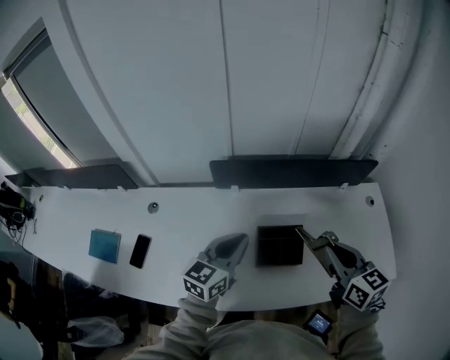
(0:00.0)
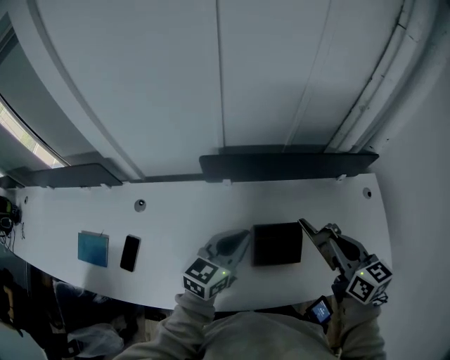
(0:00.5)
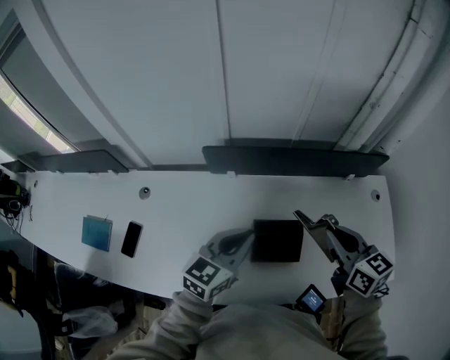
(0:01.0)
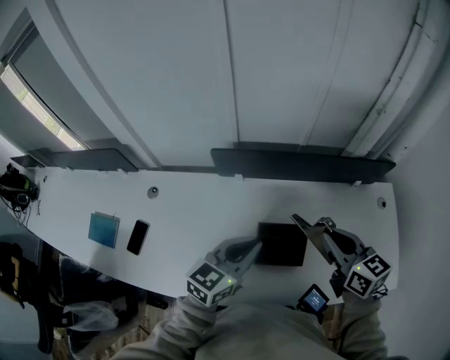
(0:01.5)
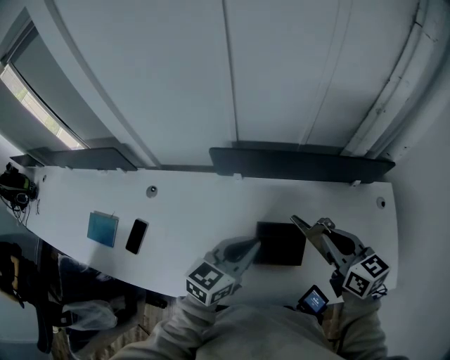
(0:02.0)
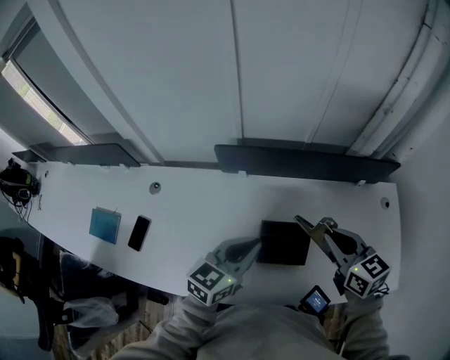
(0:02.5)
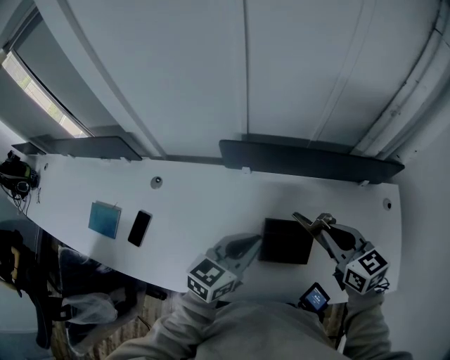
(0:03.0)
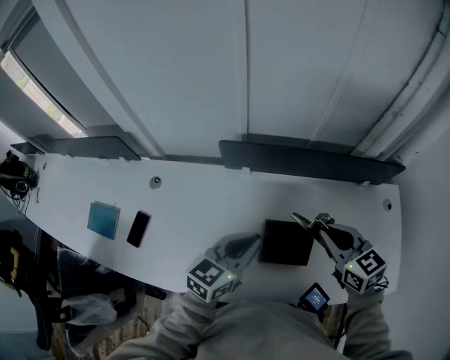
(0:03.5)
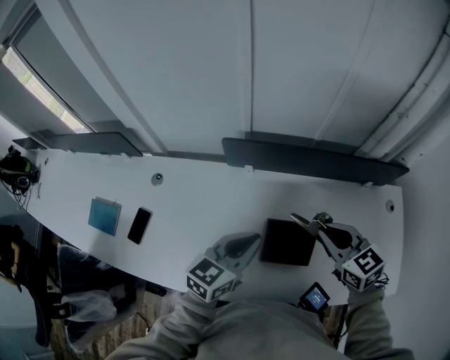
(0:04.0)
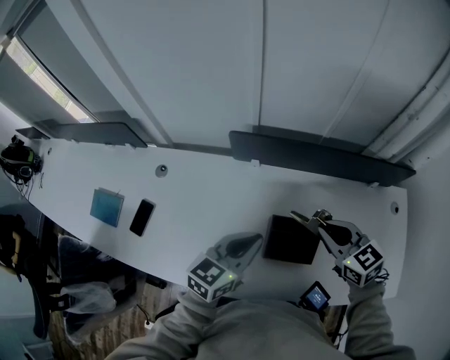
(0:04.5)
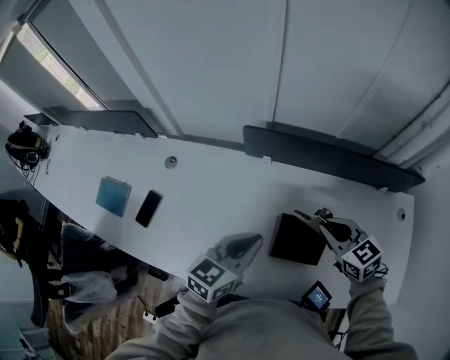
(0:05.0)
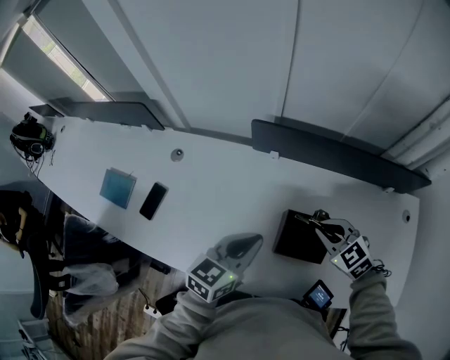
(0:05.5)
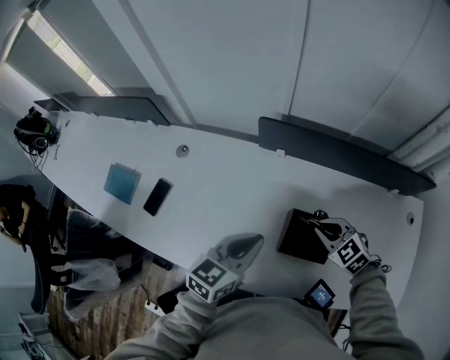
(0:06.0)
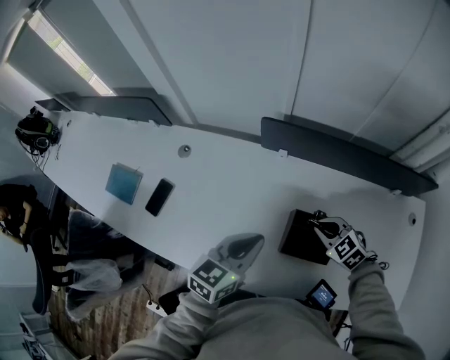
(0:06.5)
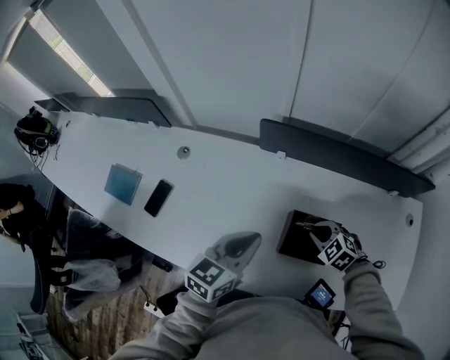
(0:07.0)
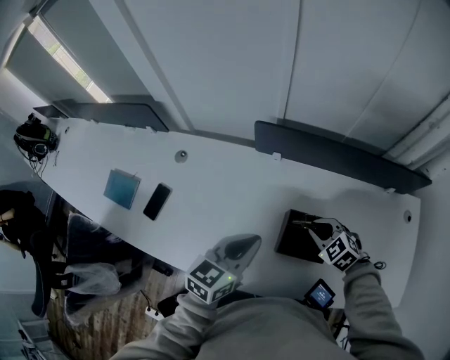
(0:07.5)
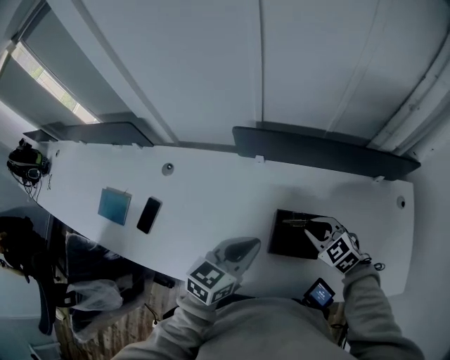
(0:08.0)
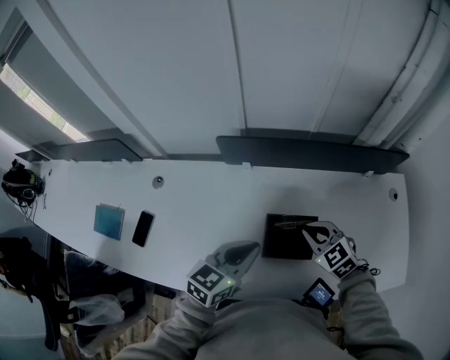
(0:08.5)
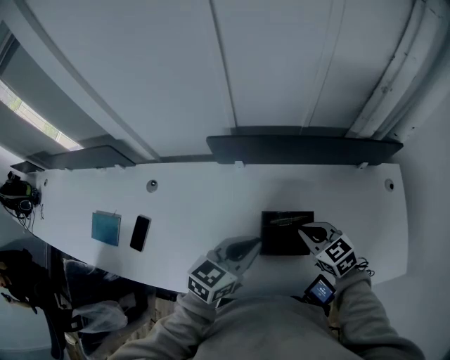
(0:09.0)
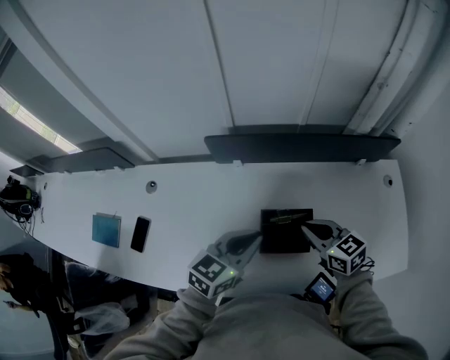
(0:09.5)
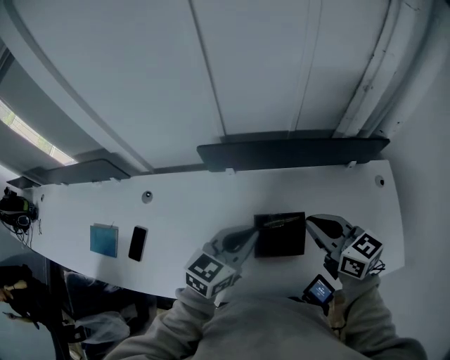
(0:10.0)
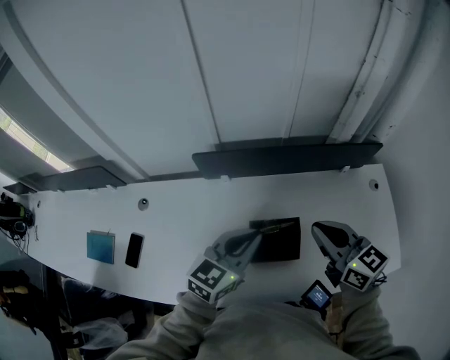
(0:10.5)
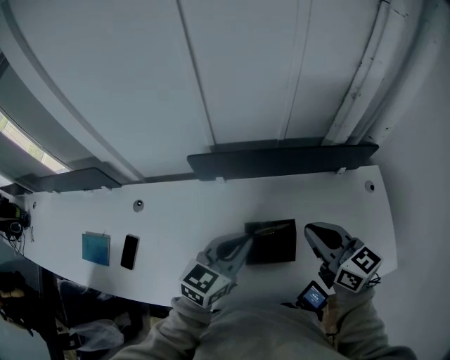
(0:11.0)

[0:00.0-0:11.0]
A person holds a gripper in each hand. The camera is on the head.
0:00.0 to 0:02.0: The left gripper changes place by some 5 cm; the right gripper heads forward, covering roughly 10 cm.
0:02.0 to 0:03.5: The grippers move only a little.
0:03.5 to 0:05.5: The left gripper moves about 5 cm, while the right gripper moves downward and to the left, some 10 cm, and rotates roughly 30 degrees.
0:05.5 to 0:07.5: The right gripper moves downward, some 5 cm.
0:07.5 to 0:09.0: The right gripper travels upward by roughly 5 cm, and turns by approximately 30 degrees; the left gripper shifts approximately 10 cm to the right.
0:09.0 to 0:11.0: The right gripper goes roughly 15 cm upward, and changes its angle by about 30 degrees; the left gripper is displaced upward by roughly 5 cm.

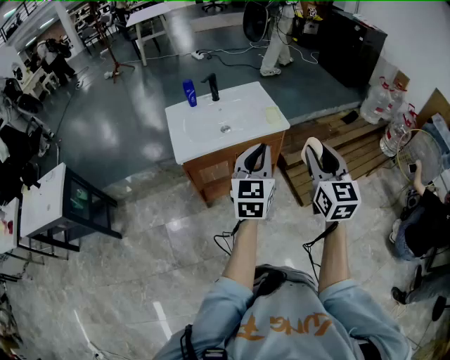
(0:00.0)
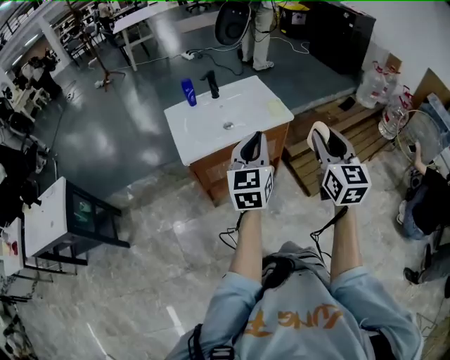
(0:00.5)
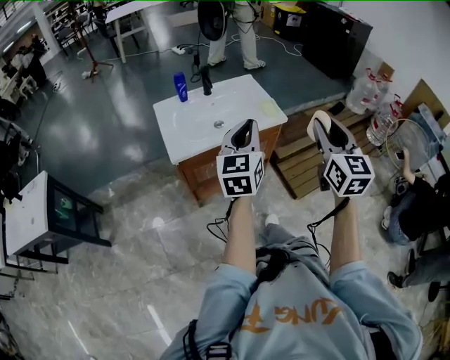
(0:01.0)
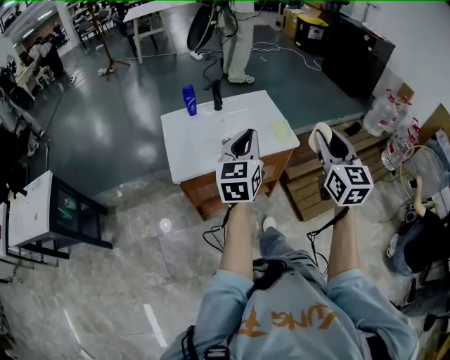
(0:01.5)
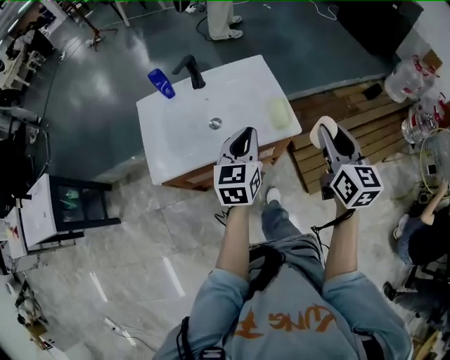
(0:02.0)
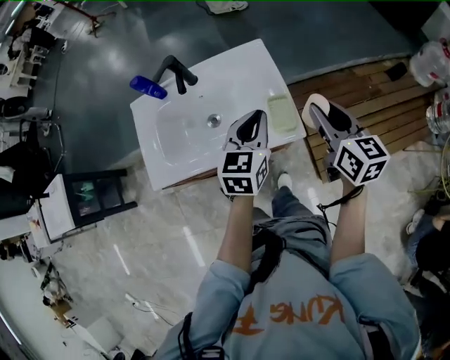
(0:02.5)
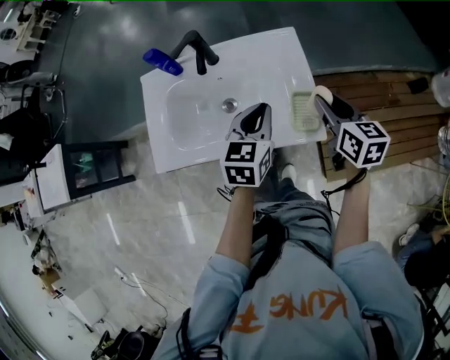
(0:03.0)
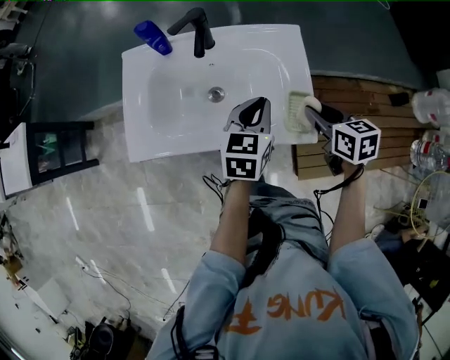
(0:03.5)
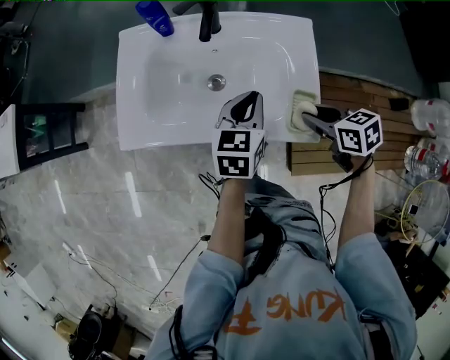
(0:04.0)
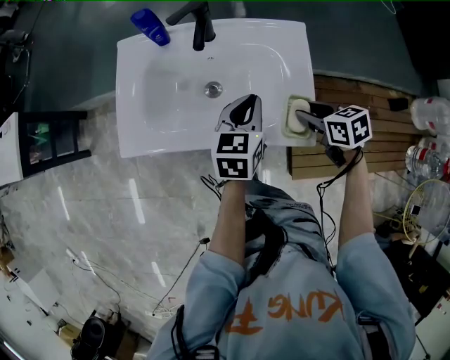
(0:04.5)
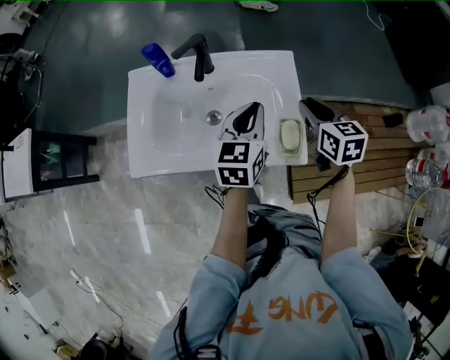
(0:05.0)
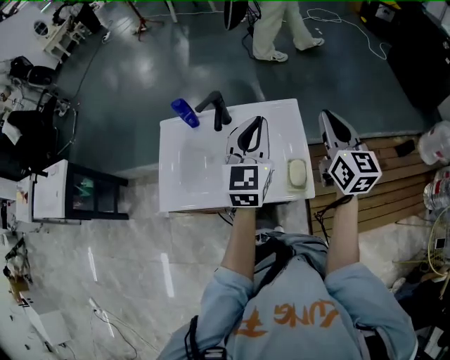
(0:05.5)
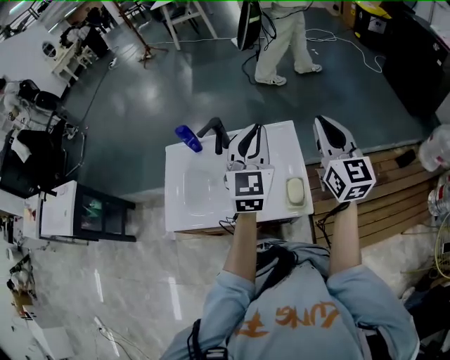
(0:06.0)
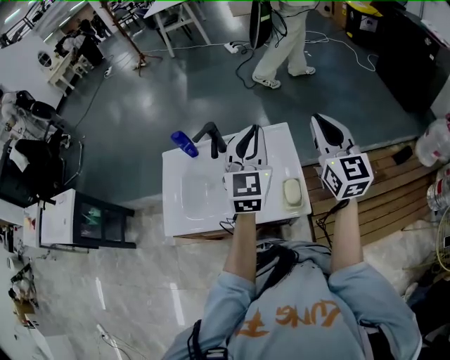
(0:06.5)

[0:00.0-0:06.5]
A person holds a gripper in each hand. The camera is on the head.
0:00.0 to 0:02.0: The right gripper moves forward, approximately 30 cm, while the left gripper shifts some 30 cm forward and downward.
0:02.0 to 0:04.5: The right gripper goes about 25 cm downward, and points its fingers roughly 40 degrees further downward. Meanwhile the left gripper ends up about 20 cm from where it was.
0:04.5 to 0:06.5: The two grippers go roughly 30 cm upward. The left gripper changes its angle by approximately 40 degrees. Meanwhile the right gripper tilts its fingers roughly 50 degrees upward, and closes up.

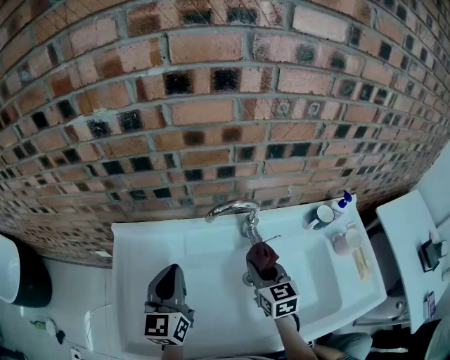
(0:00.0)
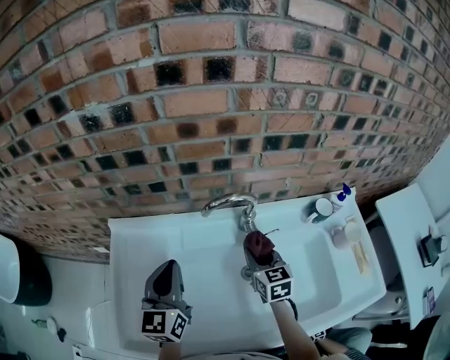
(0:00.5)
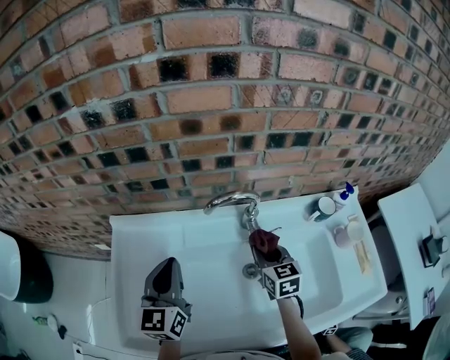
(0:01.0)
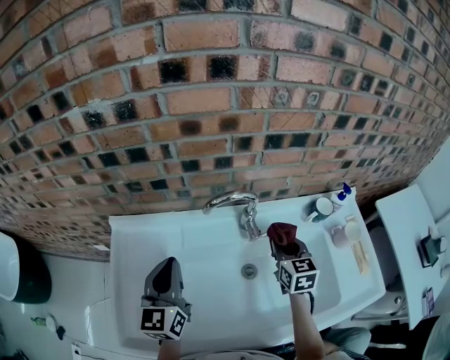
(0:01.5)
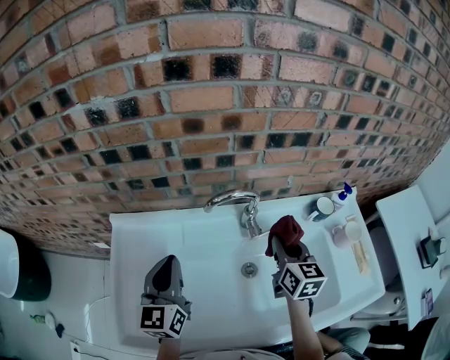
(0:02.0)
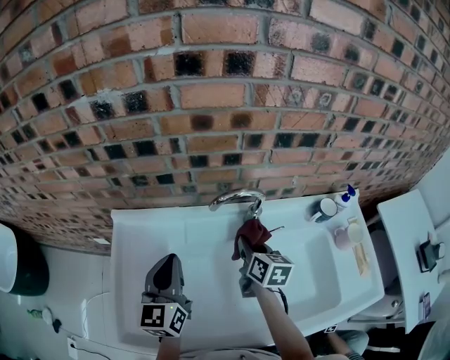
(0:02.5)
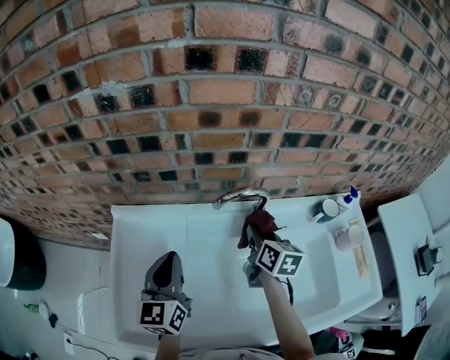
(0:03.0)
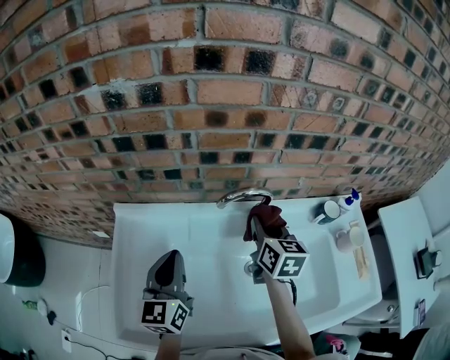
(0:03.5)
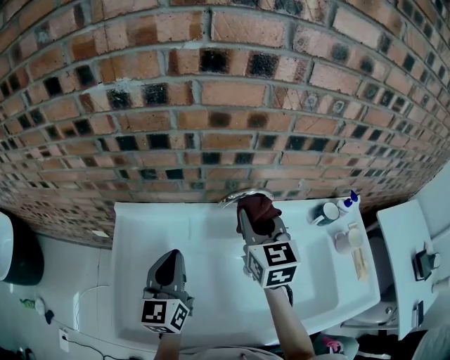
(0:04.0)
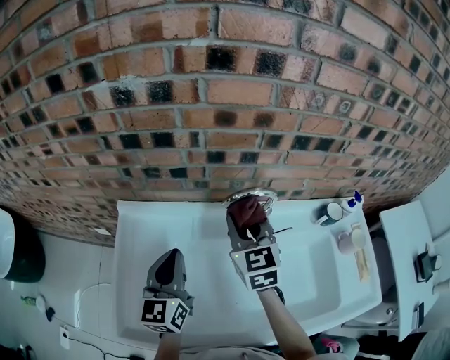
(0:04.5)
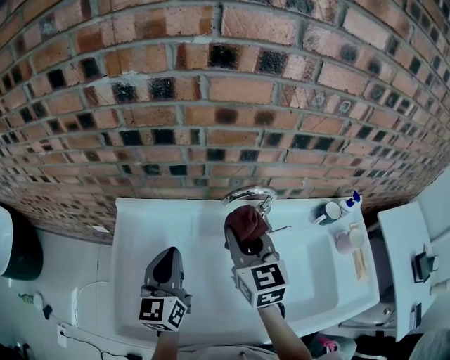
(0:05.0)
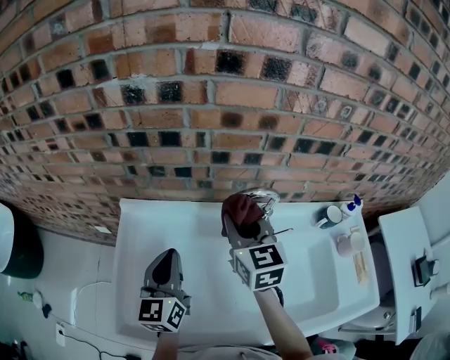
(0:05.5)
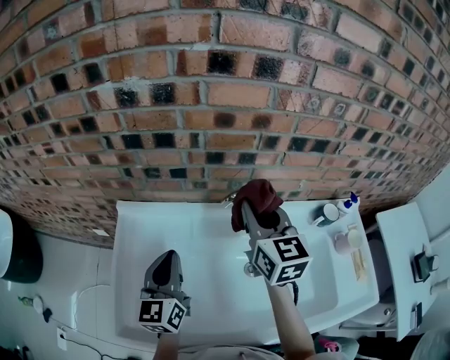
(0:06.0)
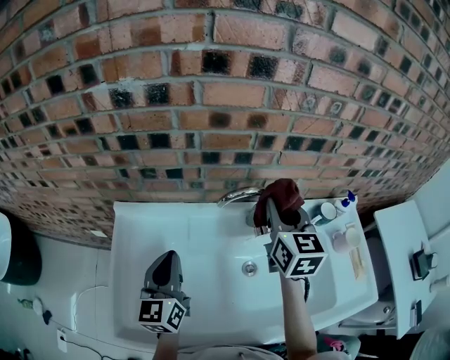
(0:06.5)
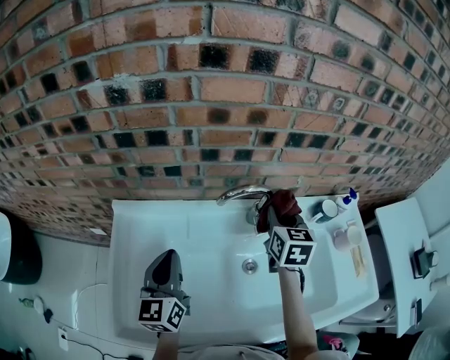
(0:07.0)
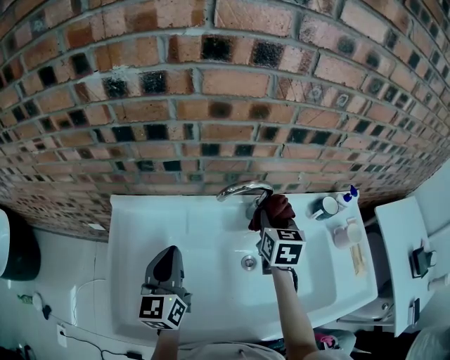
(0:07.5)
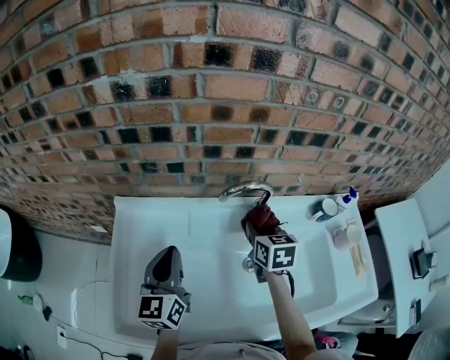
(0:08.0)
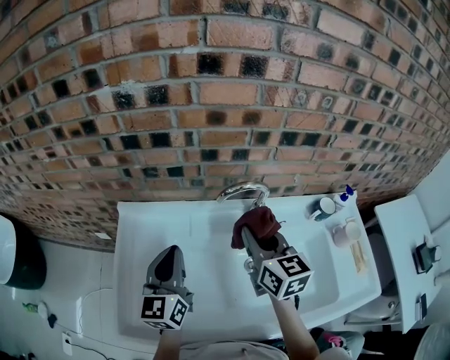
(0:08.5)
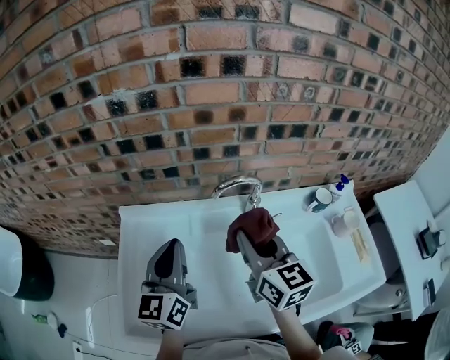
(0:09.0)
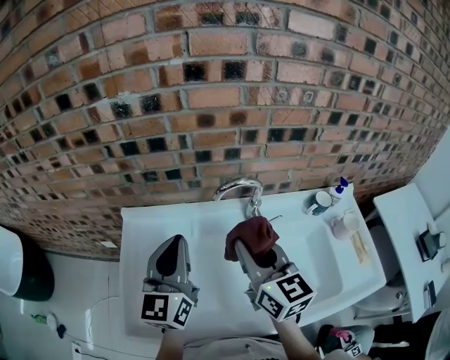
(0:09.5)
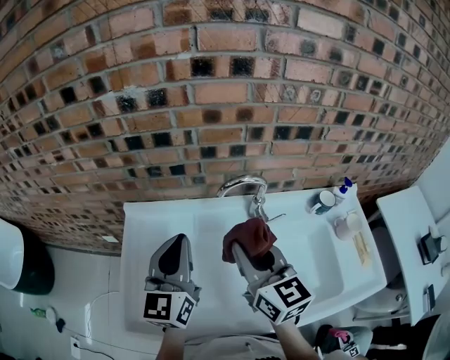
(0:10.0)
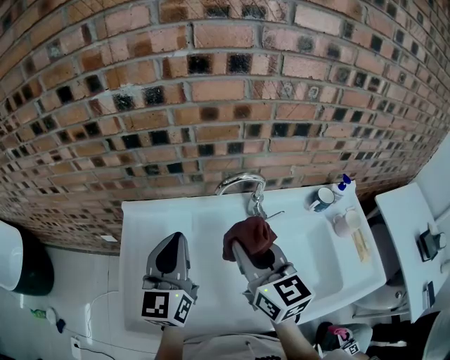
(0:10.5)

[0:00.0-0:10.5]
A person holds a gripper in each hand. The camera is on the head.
0:00.0 to 0:02.0: The right gripper moves to the right and upward, roughly 10 cm.
0:02.0 to 0:04.0: The right gripper travels to the left, upward and forward by about 15 cm.
0:04.0 to 0:06.5: The right gripper is displaced to the right by about 5 cm.
0:06.5 to 0:08.5: The right gripper travels backward and to the left by roughly 10 cm, and reaches approximately 15 cm downward, then returns.
0:08.5 to 0:10.5: The right gripper goes roughly 5 cm backward. Meanwhile the left gripper is displaced upward by some 5 cm.
